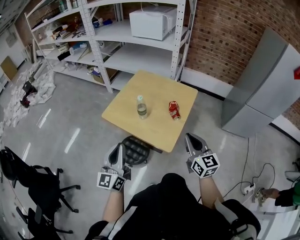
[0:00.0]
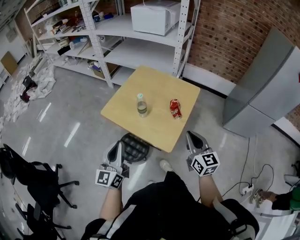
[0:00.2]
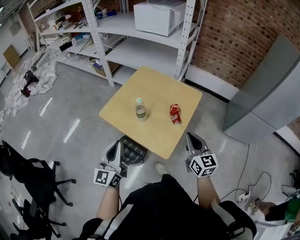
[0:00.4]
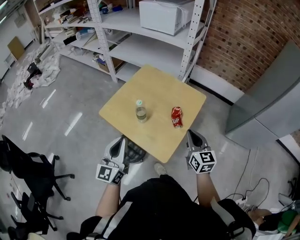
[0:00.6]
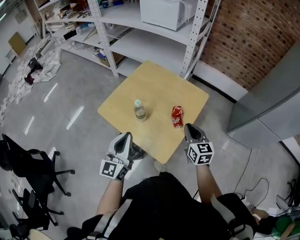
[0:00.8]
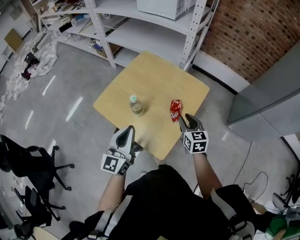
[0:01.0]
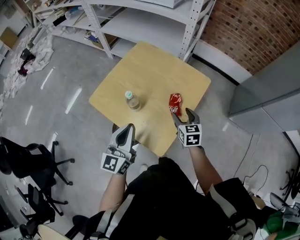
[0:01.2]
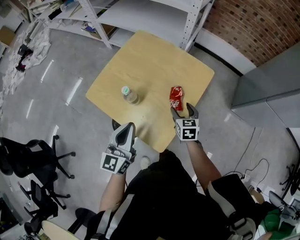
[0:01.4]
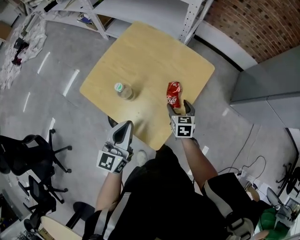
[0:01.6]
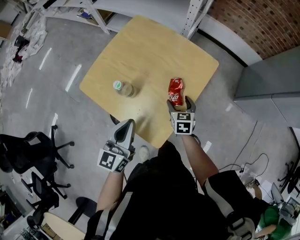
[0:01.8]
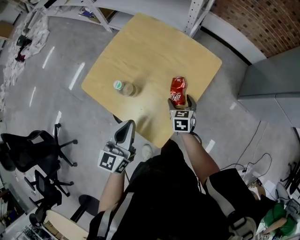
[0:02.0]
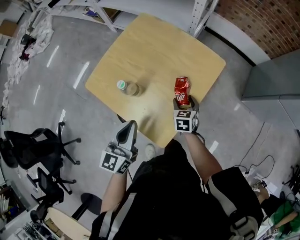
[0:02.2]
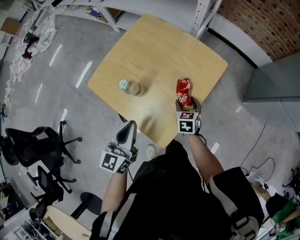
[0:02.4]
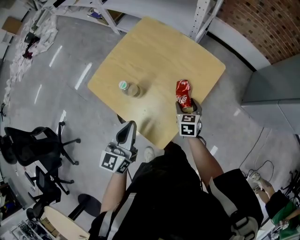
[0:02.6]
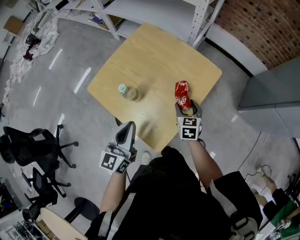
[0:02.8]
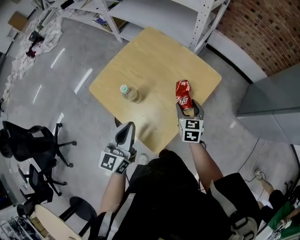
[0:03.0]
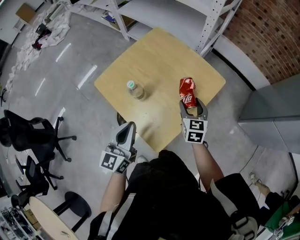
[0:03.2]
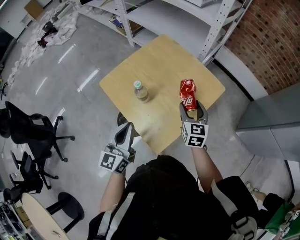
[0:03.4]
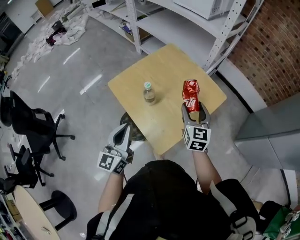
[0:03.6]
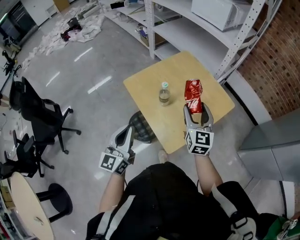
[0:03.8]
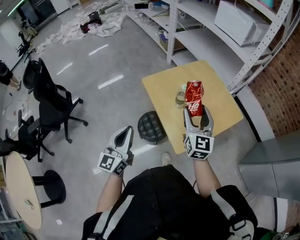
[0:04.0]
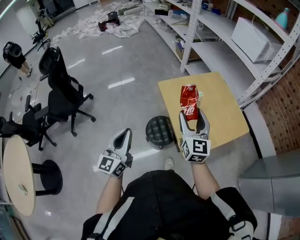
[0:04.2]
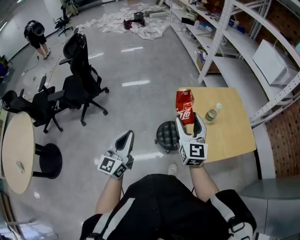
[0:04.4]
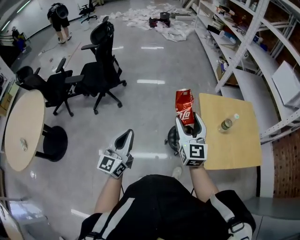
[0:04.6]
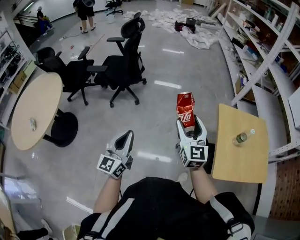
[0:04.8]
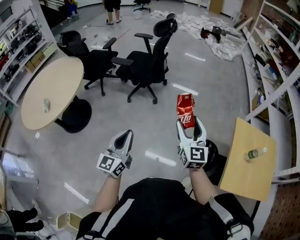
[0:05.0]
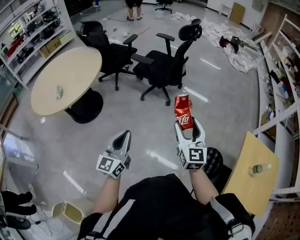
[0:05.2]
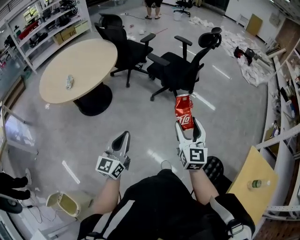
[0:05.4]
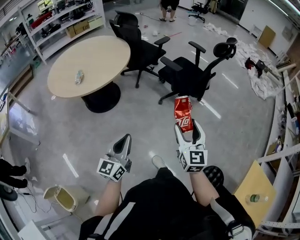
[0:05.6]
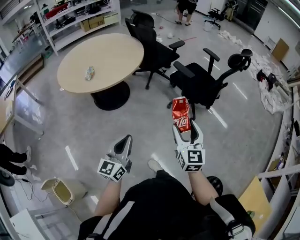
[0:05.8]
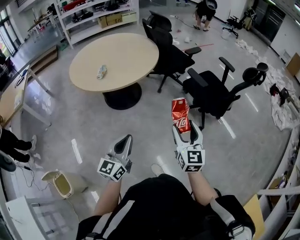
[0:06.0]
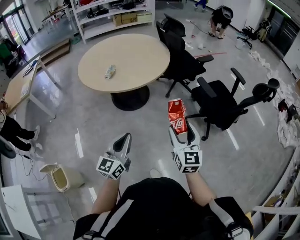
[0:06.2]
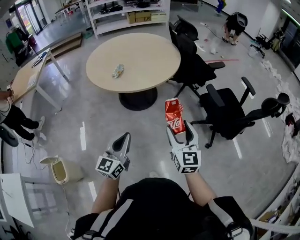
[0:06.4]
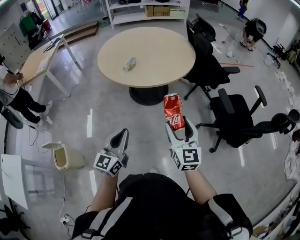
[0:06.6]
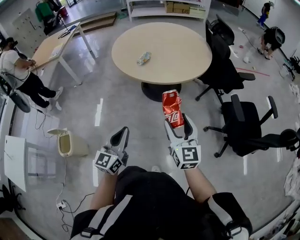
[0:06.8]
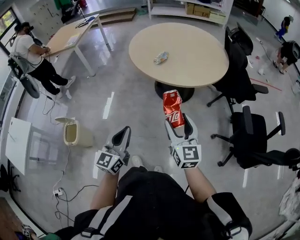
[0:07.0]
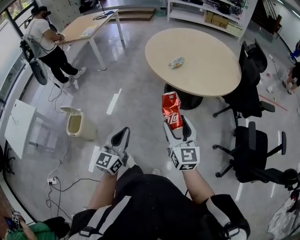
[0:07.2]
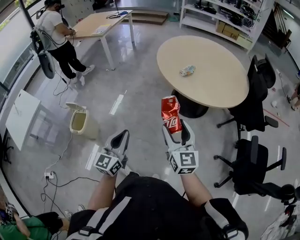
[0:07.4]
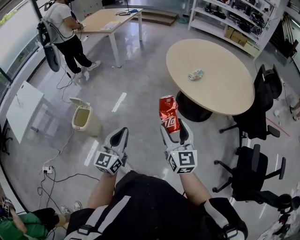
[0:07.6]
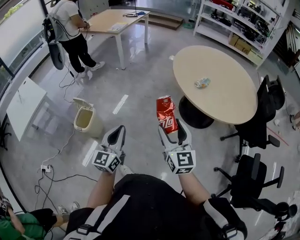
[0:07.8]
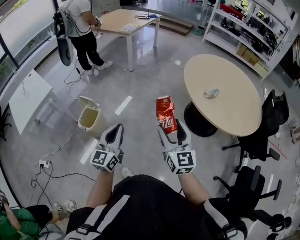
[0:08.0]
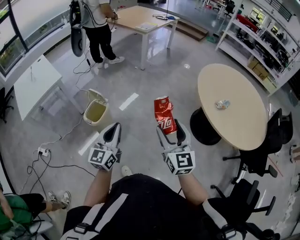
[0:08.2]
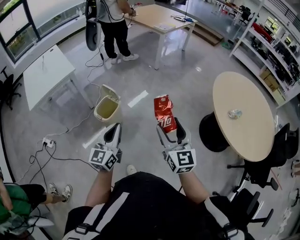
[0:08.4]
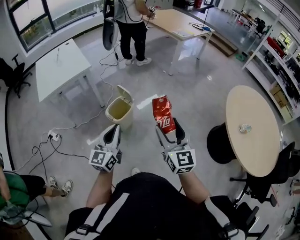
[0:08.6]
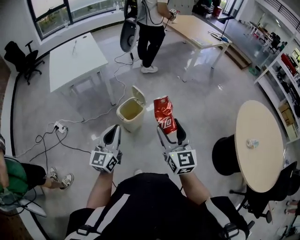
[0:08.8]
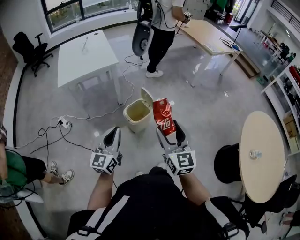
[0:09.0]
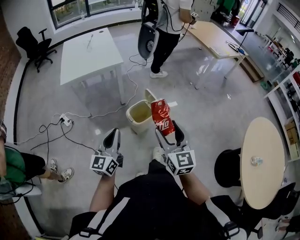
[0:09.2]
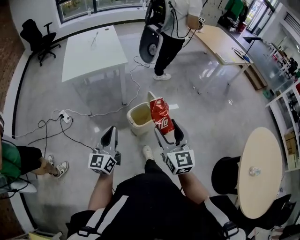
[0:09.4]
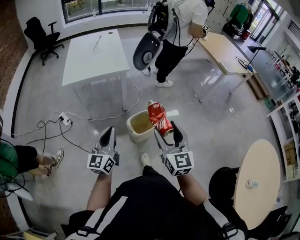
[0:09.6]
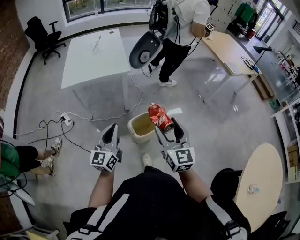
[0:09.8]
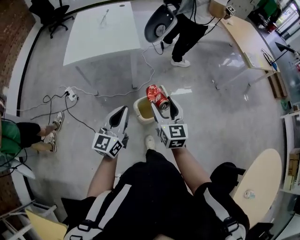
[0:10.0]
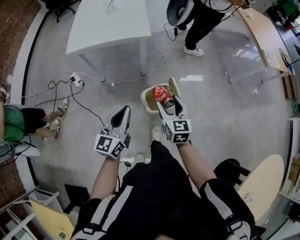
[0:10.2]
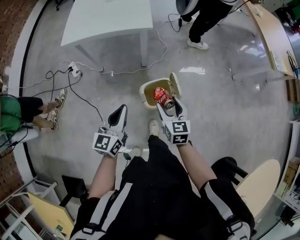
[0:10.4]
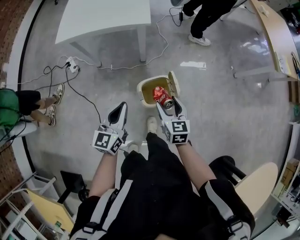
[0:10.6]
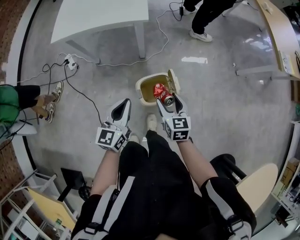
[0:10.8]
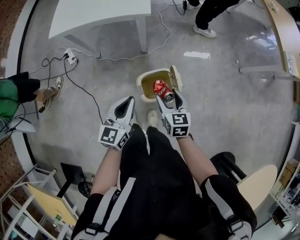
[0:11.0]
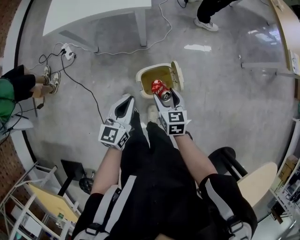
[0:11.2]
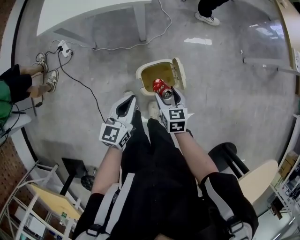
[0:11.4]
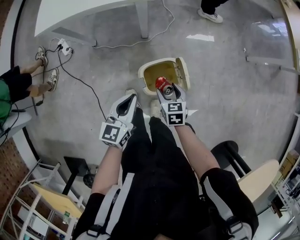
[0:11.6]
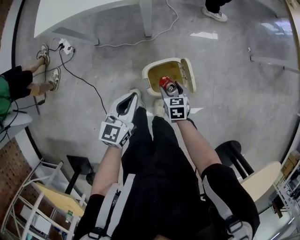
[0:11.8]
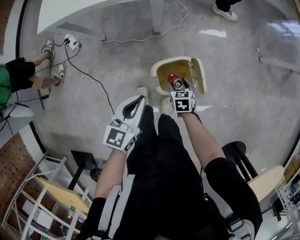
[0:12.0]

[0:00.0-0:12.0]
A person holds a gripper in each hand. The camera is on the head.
0:00.0 to 0:01.6: The left gripper heads forward, to the right and downward, covering approximately 25 cm, while the right gripper goes roughly 35 cm downward and forward, tilts its fingers some 40 degrees downward, and opens its fingers.
0:01.6 to 0:03.0: The right gripper changes place by about 5 cm.
0:03.0 to 0:04.4: The left gripper changes place by roughly 40 cm, and swivels about 40 degrees, while the right gripper moves about 50 cm, and tips its fingers upward by some 30 degrees.
0:04.4 to 0:06.0: The pair of grippers is taken roughly 60 cm. The right gripper rotates roughly 70 degrees. The left gripper rotates approximately 70 degrees.
0:06.0 to 0:07.6: The right gripper ends up some 35 cm from where it was, and changes its angle by some 60 degrees. The left gripper changes place by approximately 20 cm, and swivels roughly 60 degrees.
0:07.6 to 0:09.0: The pair of grippers is taken roughly 50 cm. The right gripper rotates some 40 degrees. Meanwhile the left gripper changes its angle by some 50 degrees.
0:09.0 to 0:10.4: The left gripper moves forward and downward, roughly 25 cm, and turns by some 20 degrees. The right gripper is displaced forward and downward by about 40 cm, and turns by roughly 30 degrees.
0:10.4 to 0:12.0: The right gripper travels downward by approximately 30 cm, and tips its fingers downward by roughly 30 degrees; the left gripper travels downward and forward by approximately 15 cm.

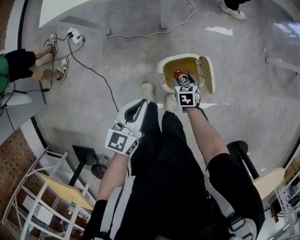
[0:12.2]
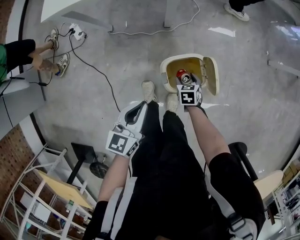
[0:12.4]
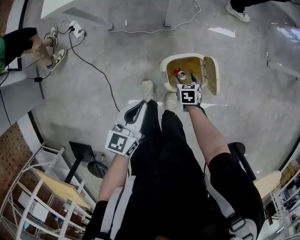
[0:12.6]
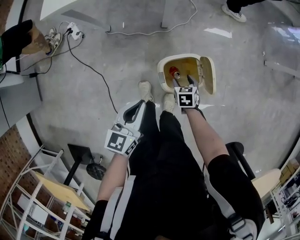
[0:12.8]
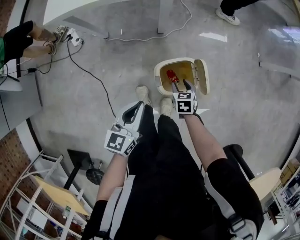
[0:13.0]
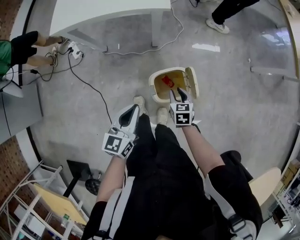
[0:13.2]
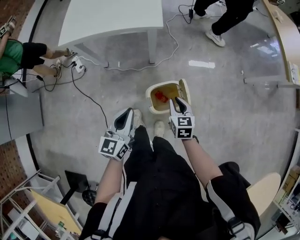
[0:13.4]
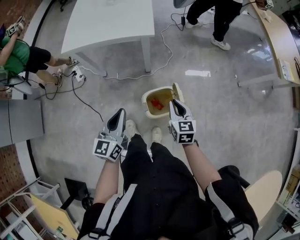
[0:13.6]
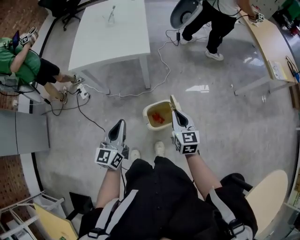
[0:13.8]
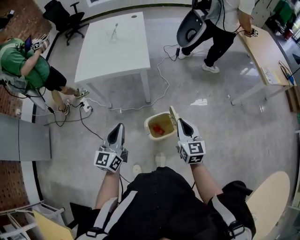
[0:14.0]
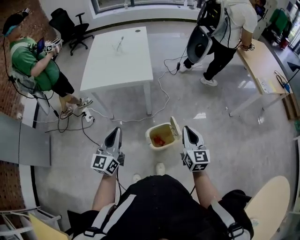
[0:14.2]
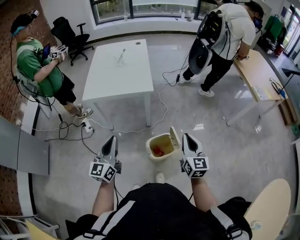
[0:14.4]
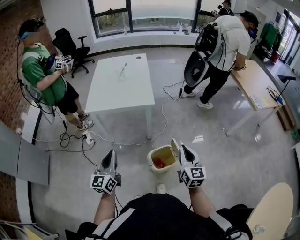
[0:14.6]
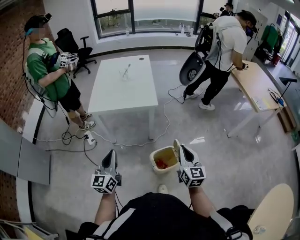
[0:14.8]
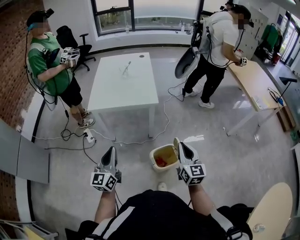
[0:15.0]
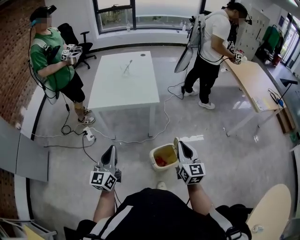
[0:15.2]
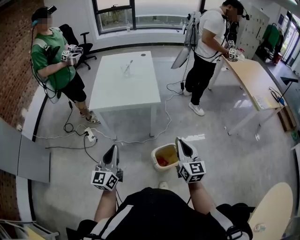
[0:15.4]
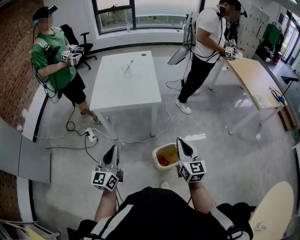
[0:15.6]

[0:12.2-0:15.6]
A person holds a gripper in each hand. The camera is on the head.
0:12.2 to 0:13.8: The right gripper travels upward by about 35 cm, tilts its fingers about 40 degrees upward, and closes its fingers. The left gripper travels upward by roughly 15 cm, and swivels about 20 degrees.
0:13.8 to 0:15.6: The right gripper moves upward and to the left, approximately 15 cm; the left gripper moves to the left and upward, about 15 cm.

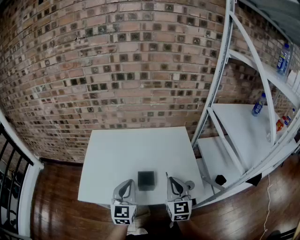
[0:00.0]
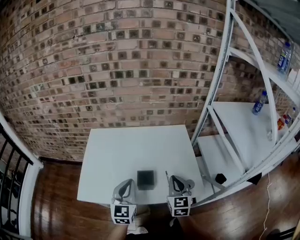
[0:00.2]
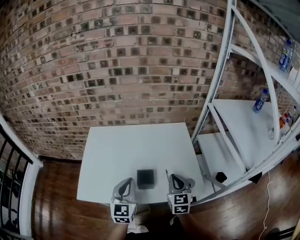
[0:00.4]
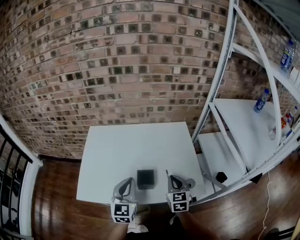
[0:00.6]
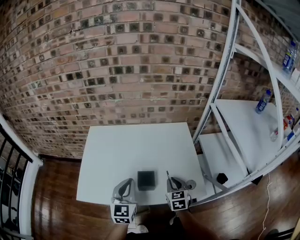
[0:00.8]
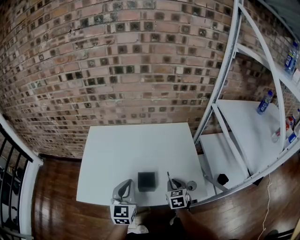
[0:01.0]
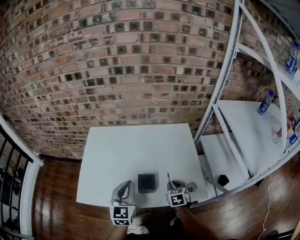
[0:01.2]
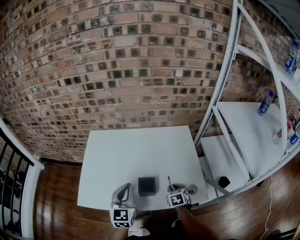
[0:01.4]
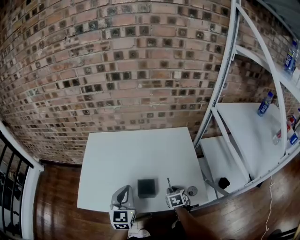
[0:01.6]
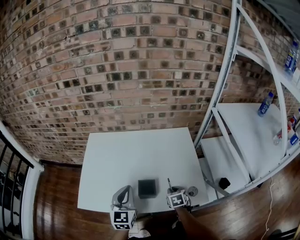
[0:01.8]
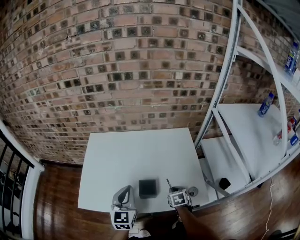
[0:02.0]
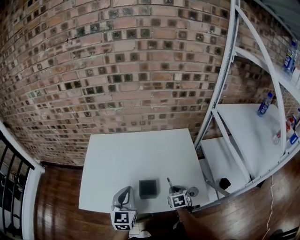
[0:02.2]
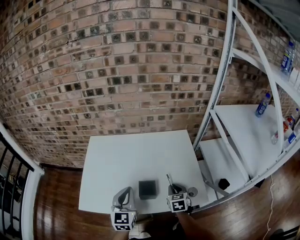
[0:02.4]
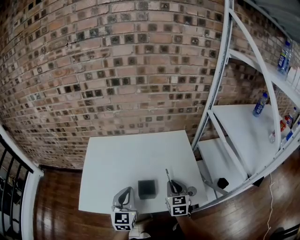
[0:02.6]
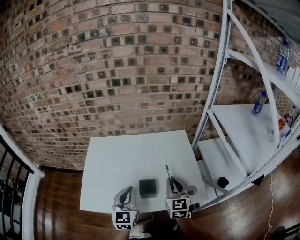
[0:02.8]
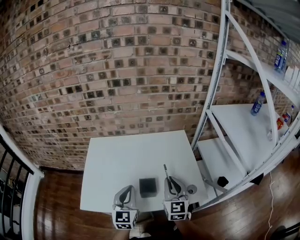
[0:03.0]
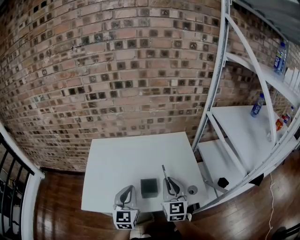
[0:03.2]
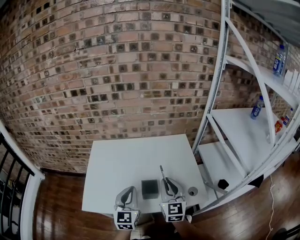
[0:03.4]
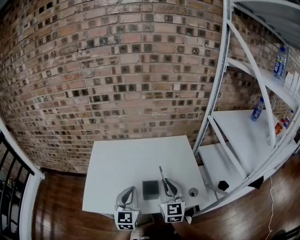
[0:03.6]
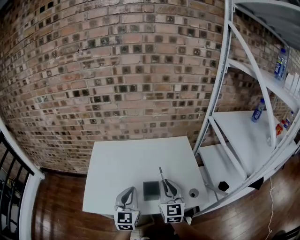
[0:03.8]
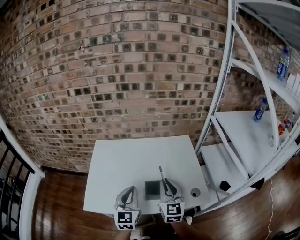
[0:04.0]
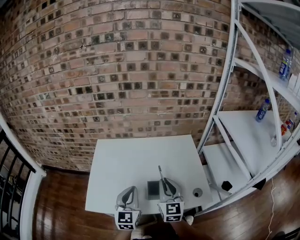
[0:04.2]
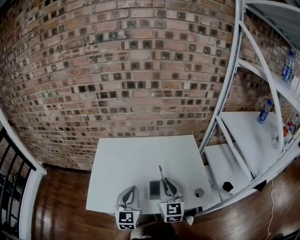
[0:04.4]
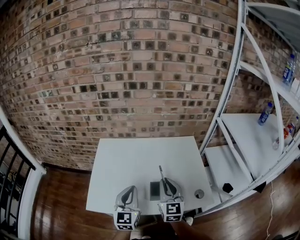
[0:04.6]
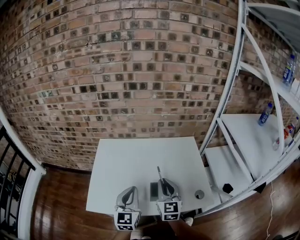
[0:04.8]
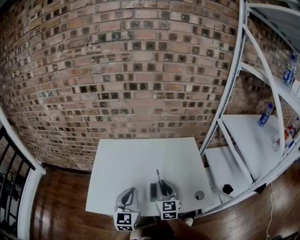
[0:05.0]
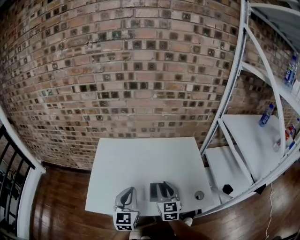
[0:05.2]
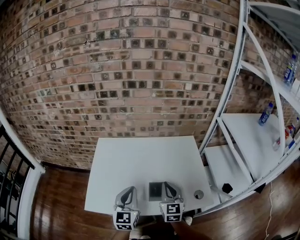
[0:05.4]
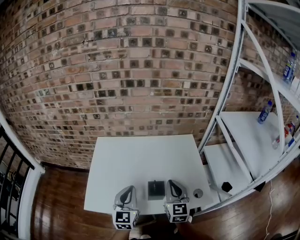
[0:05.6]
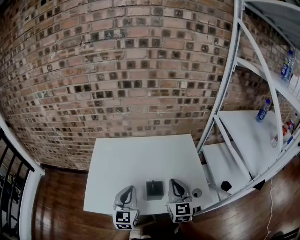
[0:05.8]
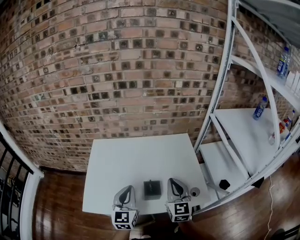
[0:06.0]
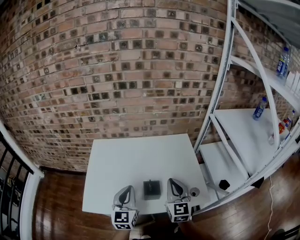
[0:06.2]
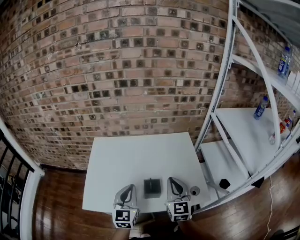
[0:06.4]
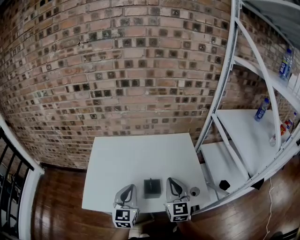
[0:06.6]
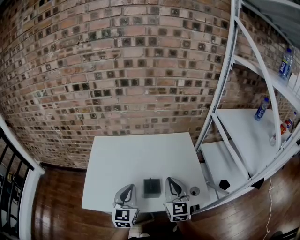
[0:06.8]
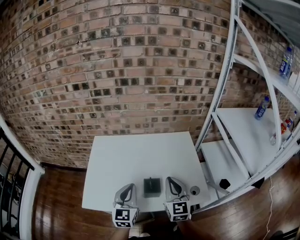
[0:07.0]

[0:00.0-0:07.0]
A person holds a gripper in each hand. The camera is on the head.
0:00.0 to 0:01.4: The right gripper moves downward, about 20 cm, and points its fingers some 40 degrees further downward.
0:01.4 to 0:02.8: The right gripper moves upward, roughly 20 cm, and tilts its fingers some 40 degrees upward.
0:02.8 to 0:04.2: The right gripper travels to the left by about 10 cm.
0:05.6 to 0:07.0: The grippers make only small movements.

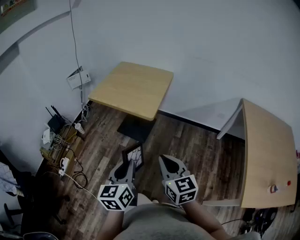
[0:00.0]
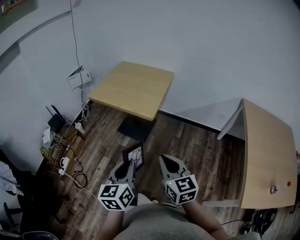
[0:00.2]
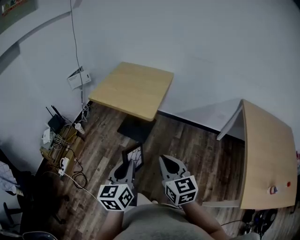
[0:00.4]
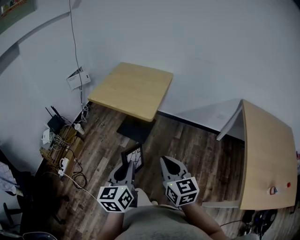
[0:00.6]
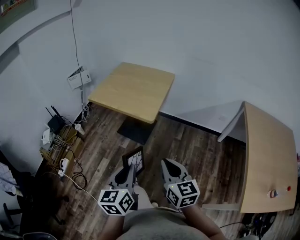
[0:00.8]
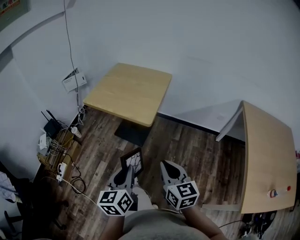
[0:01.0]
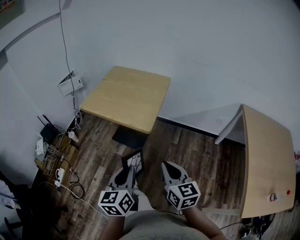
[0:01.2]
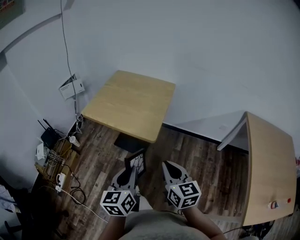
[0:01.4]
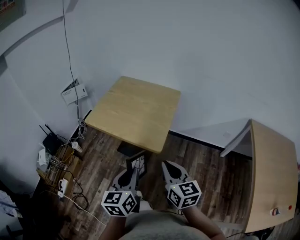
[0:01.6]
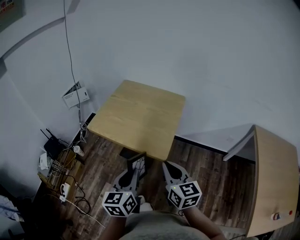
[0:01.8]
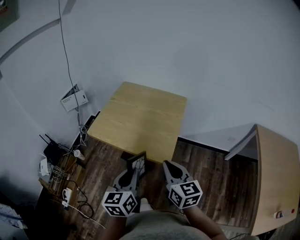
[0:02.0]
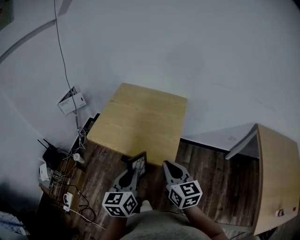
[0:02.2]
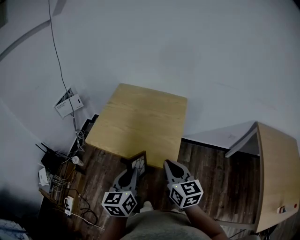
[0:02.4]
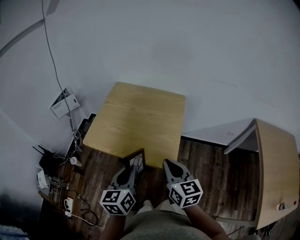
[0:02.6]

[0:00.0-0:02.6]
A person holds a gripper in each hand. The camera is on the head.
0:00.0 to 0:01.2: Both grippers move forward, approximately 10 cm.
0:01.2 to 0:02.6: The right gripper is displaced forward and to the left by some 30 cm, while the left gripper heads forward, covering roughly 25 cm.
